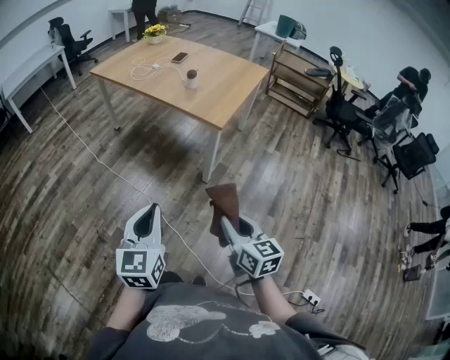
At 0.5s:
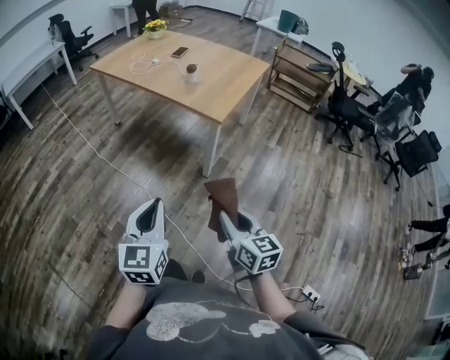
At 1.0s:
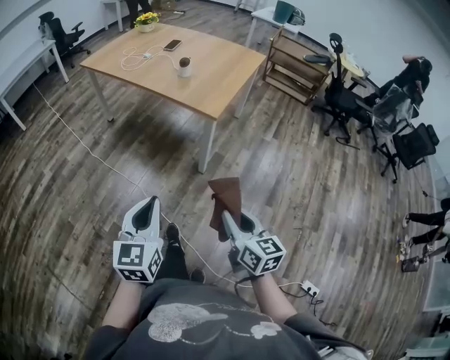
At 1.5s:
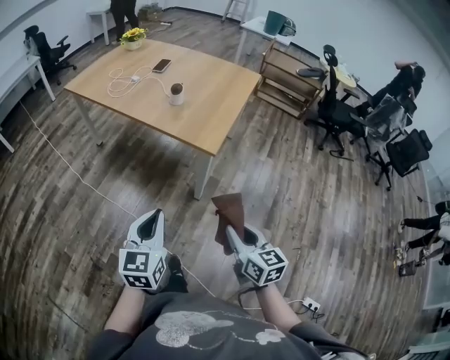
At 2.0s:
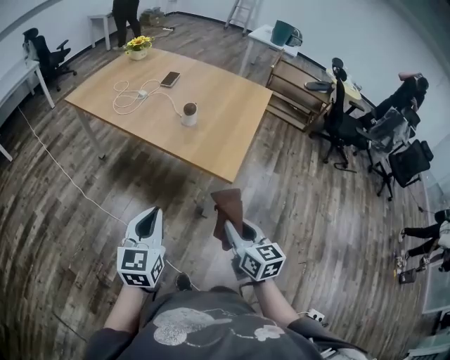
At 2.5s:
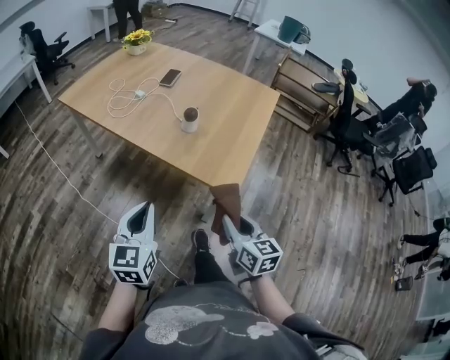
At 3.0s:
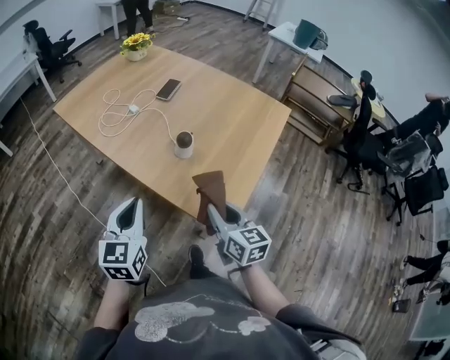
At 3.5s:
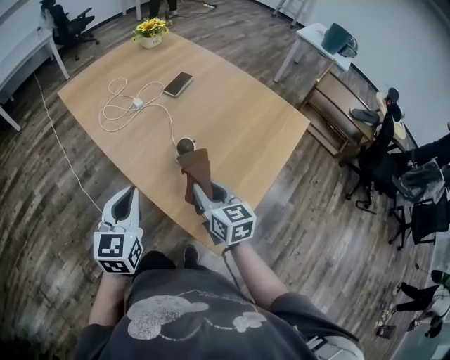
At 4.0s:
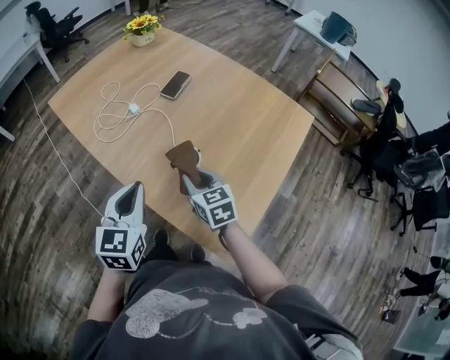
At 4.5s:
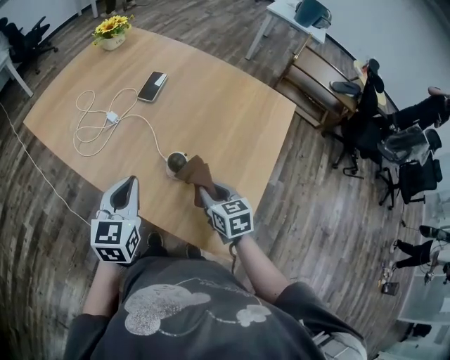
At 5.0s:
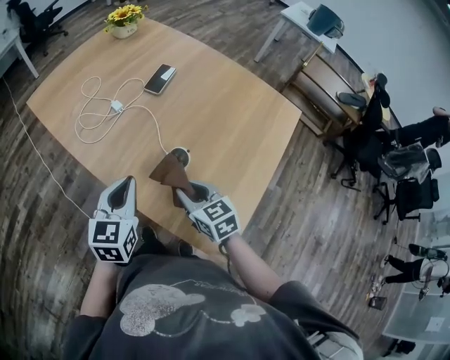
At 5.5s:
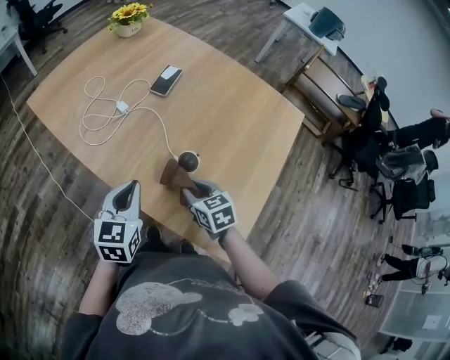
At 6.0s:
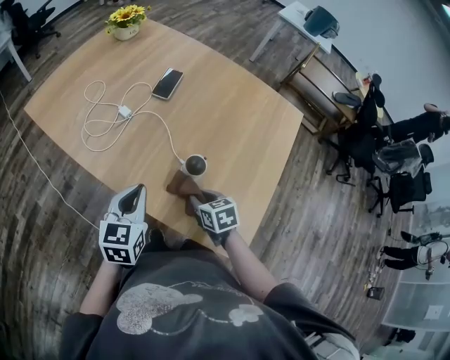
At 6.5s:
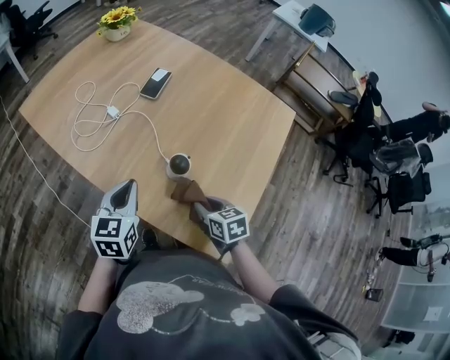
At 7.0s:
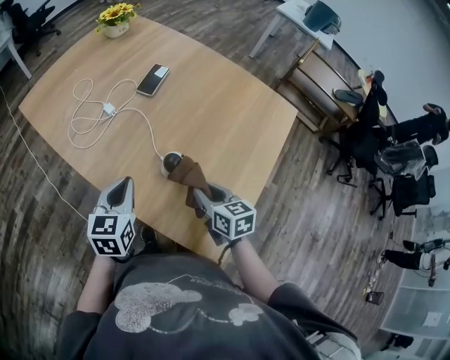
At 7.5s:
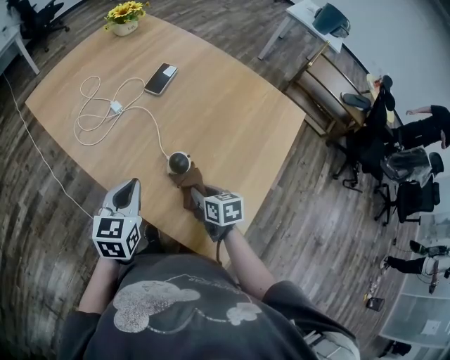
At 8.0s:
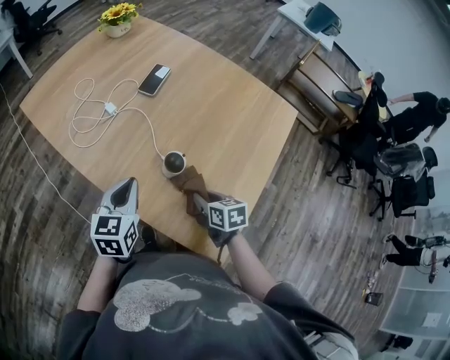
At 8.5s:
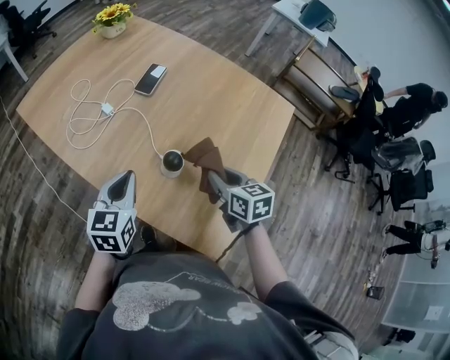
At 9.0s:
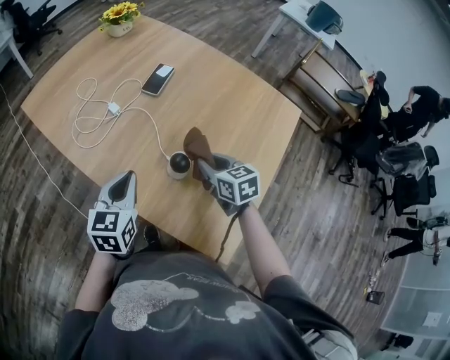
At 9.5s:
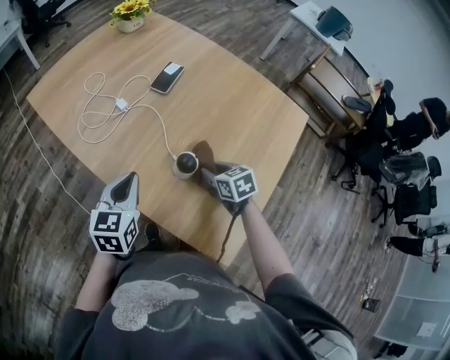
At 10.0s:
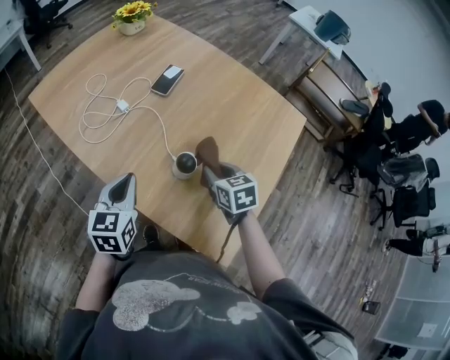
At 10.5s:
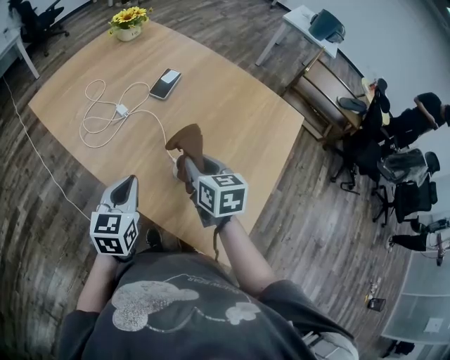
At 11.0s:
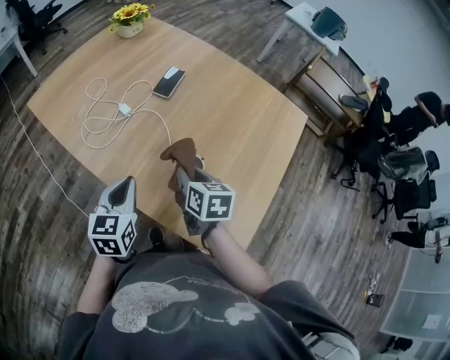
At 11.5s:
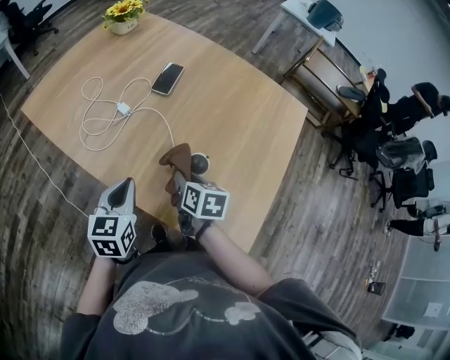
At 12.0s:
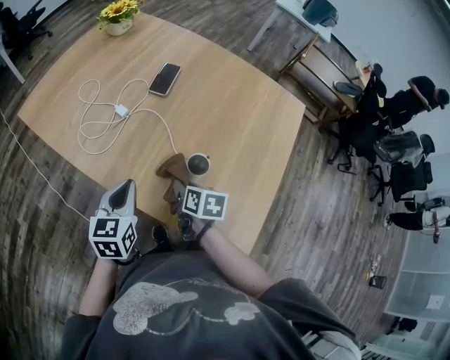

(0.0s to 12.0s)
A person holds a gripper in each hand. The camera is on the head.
0.0s - 2.0s: Both grippers move forward, about 30 cm.
2.0s - 4.0s: Both grippers move forward, about 40 cm. The right gripper swivels approximately 30 degrees.
4.0s - 6.0s: The two grippers go about 10 cm downward. The right gripper changes its angle by approximately 20 degrees.
6.0s - 8.0s: The right gripper moves to the right, some 5 cm.
8.0s - 10.0s: The right gripper moves up and down over approximately 10 cm, changing direction 2 times.
10.0s - 12.0s: The right gripper shifts approximately 15 cm to the left and downward, and swivels approximately 40 degrees; the left gripper changes place by roughly 5 cm.

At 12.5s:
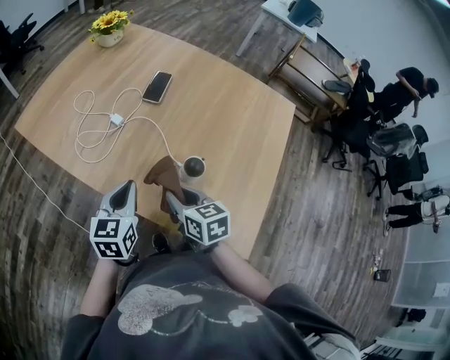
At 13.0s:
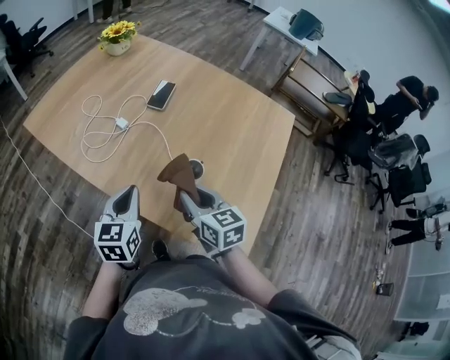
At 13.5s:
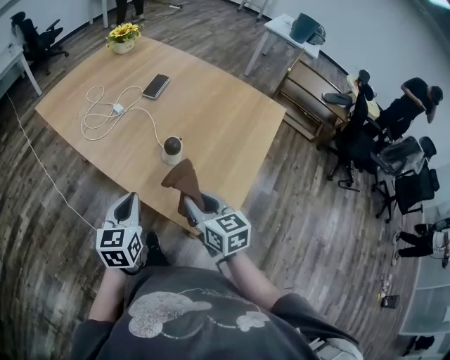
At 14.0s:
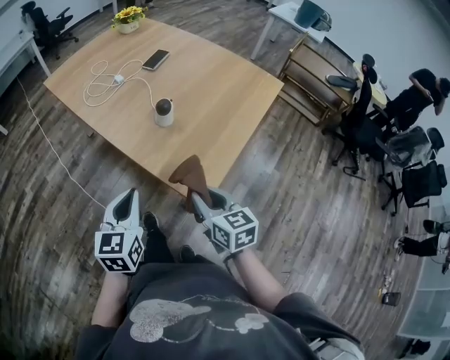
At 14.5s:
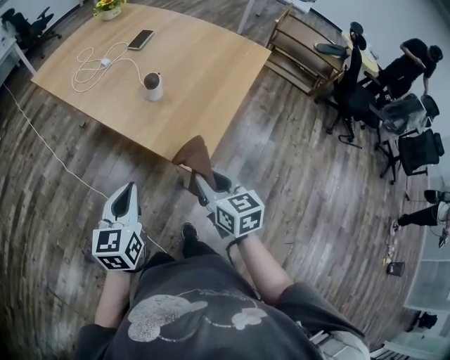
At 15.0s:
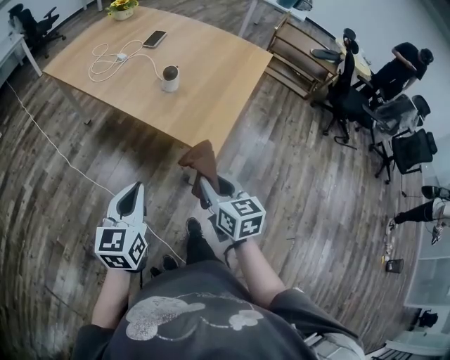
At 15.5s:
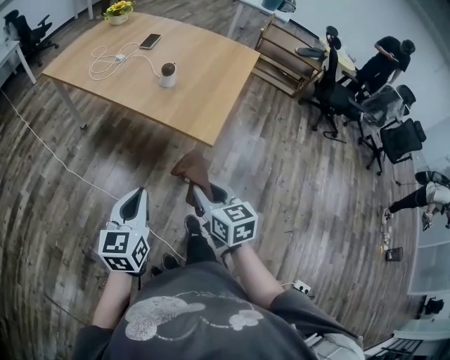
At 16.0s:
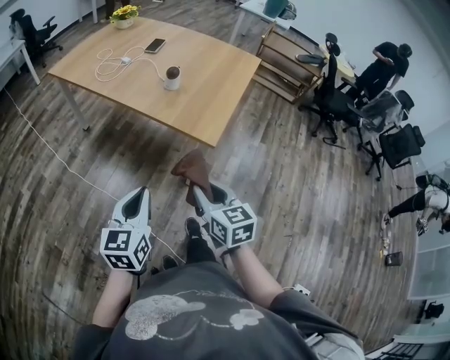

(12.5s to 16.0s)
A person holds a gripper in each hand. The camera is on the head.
12.5s - 14.5s: The right gripper heads backward and to the right, covering approximately 35 cm. Meanwhile the left gripper is displaced backward by roughly 35 cm.
14.5s - 16.0s: Both grippers travel together backward and to the left, about 20 cm.

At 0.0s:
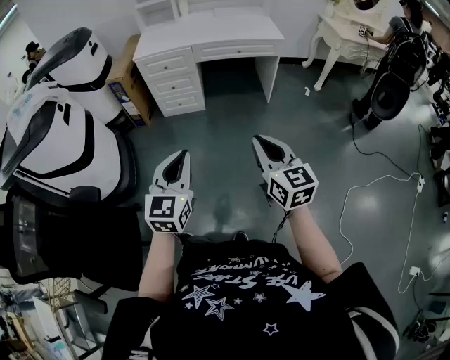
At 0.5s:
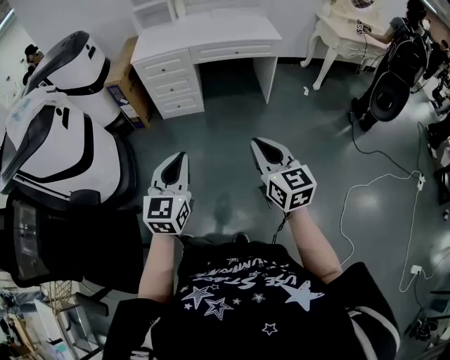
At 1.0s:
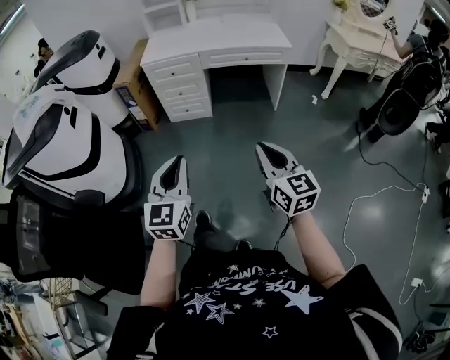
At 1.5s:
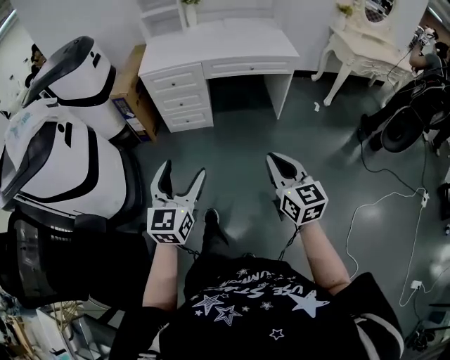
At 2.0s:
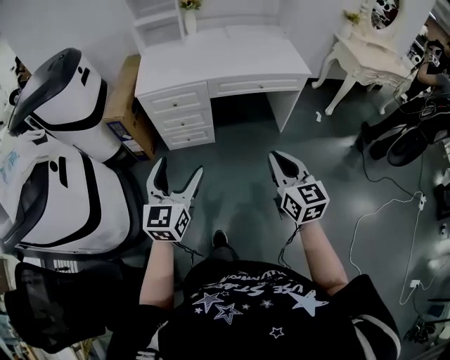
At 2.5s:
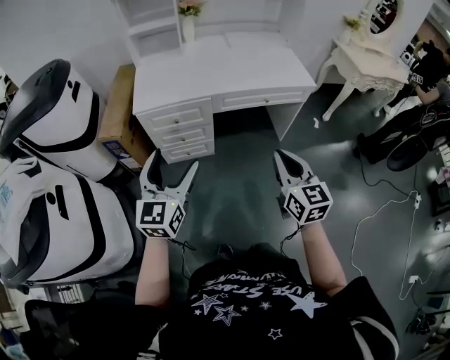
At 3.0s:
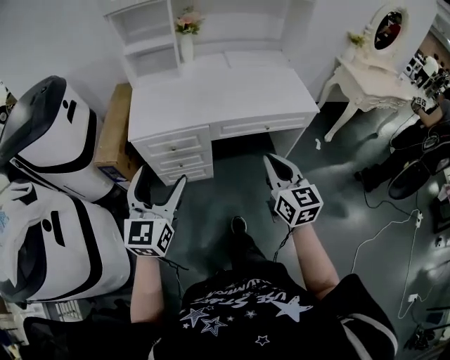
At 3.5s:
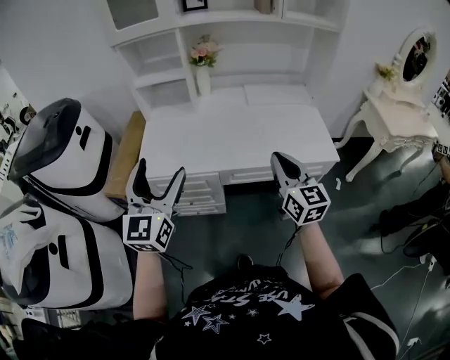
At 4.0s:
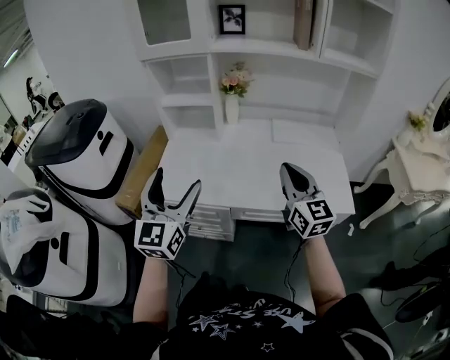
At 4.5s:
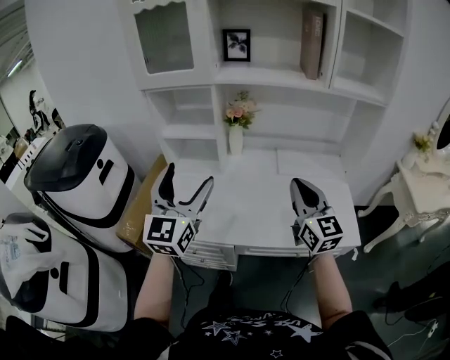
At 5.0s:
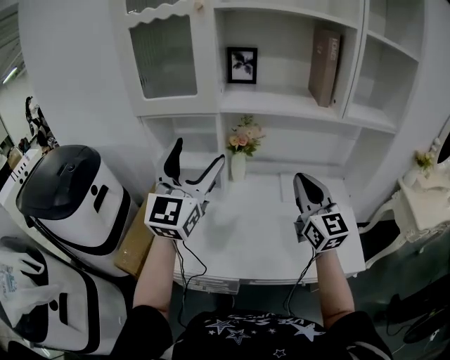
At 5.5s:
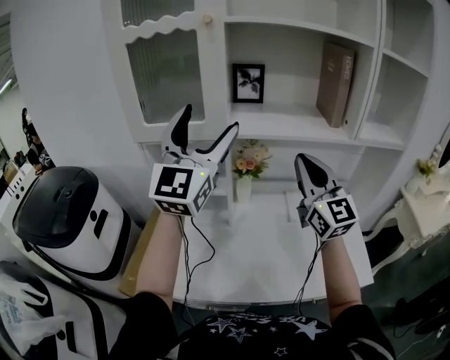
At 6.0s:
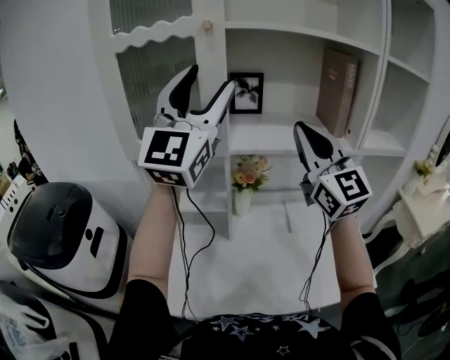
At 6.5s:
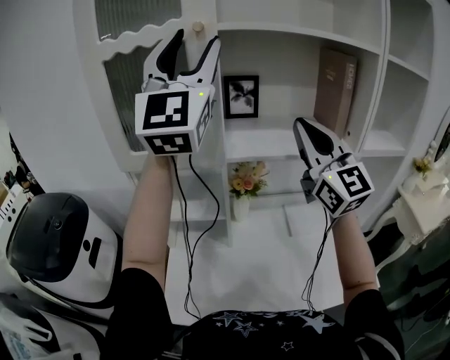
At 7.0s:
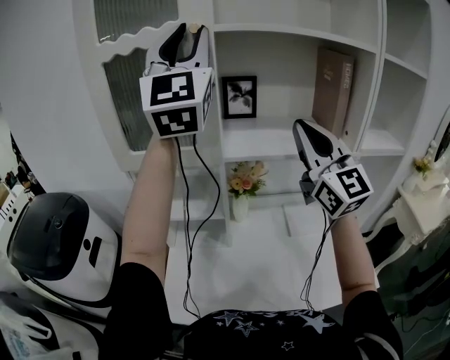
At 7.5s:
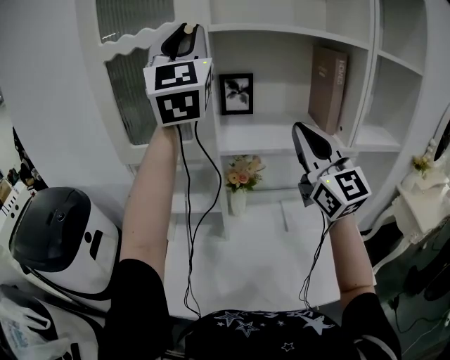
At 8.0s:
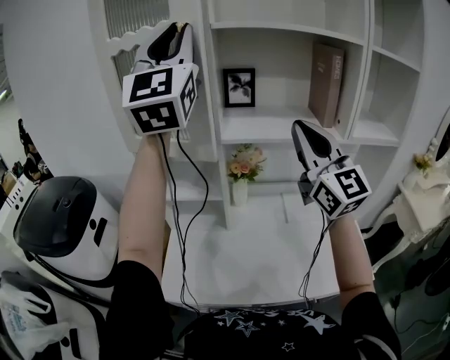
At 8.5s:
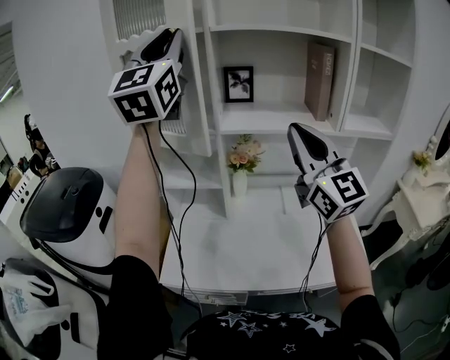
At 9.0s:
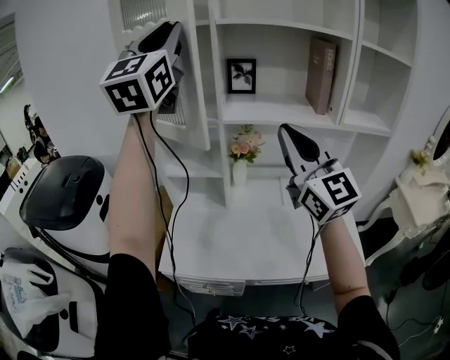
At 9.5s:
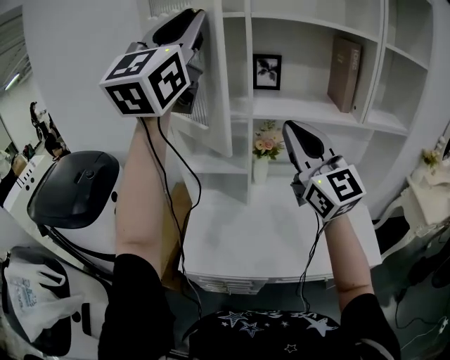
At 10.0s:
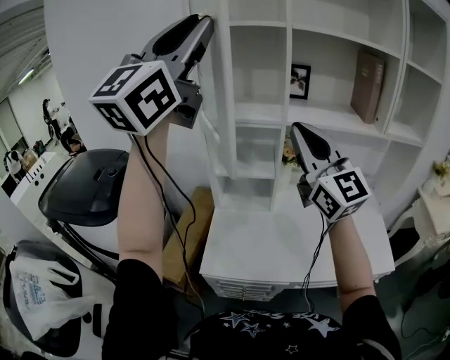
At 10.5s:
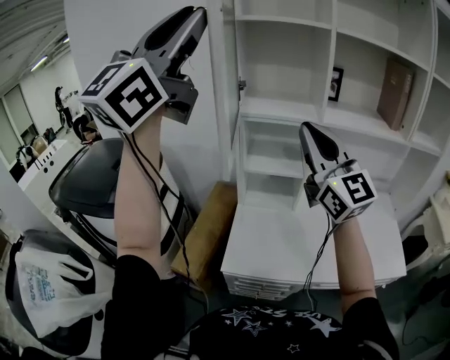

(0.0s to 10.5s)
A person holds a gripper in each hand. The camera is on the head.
0.0s - 2.0s: The grippers both shift forward by roughly 30 cm. The left gripper opens up.
2.0s - 4.0s: The pair of grippers is taken forward, about 50 cm. The left gripper turns by approximately 20 degrees.
4.0s - 6.5s: The right gripper travels forward and upward by about 40 cm, and turns by about 30 degrees. The left gripper heads upward and forward, covering approximately 60 cm, tilts its fingers roughly 30 degrees upward, and closes.
6.5s - 8.5s: The right gripper heads backward, covering roughly 15 cm; the left gripper is displaced backward by some 5 cm, and closes its fingers.
8.5s - 10.5s: The right gripper travels to the left by roughly 30 cm; the left gripper moves to the left and backward, about 30 cm, and swivels some 20 degrees.

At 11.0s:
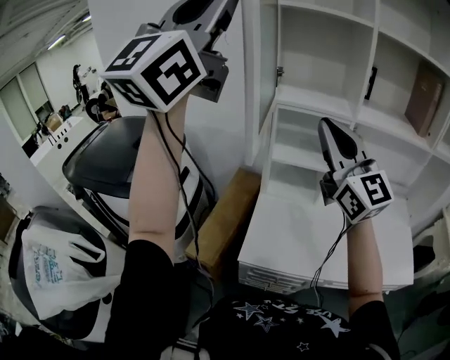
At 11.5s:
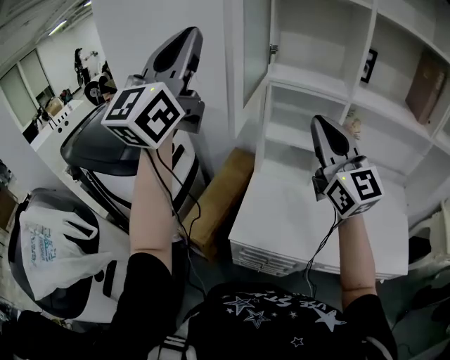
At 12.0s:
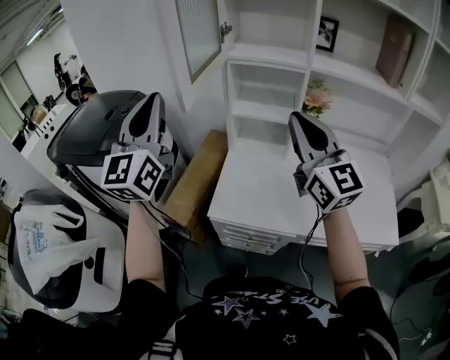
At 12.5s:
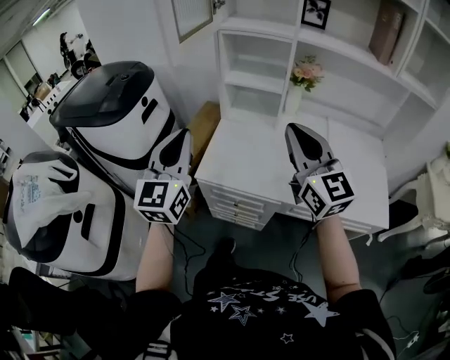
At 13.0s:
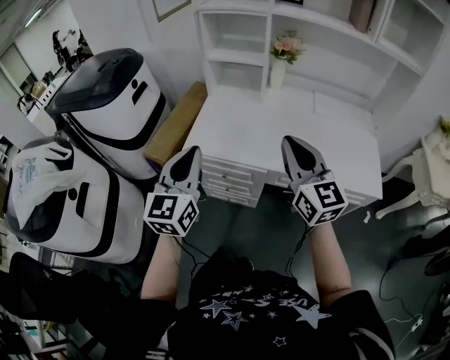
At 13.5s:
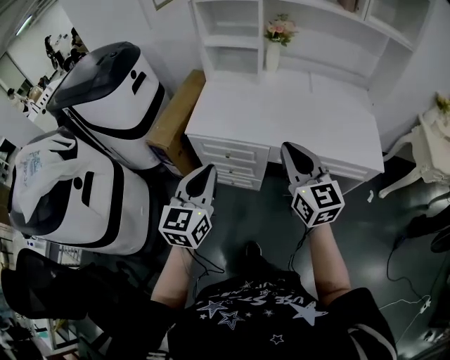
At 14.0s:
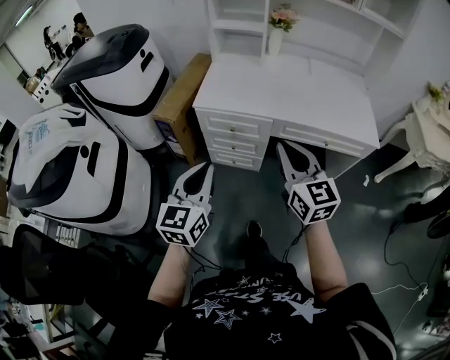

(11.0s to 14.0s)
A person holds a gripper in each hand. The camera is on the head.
11.0s - 12.5s: The left gripper moves downward, approximately 40 cm, and changes its angle by some 40 degrees. The right gripper shifts roughly 25 cm backward, downward and to the right.
12.5s - 14.0s: The two grippers go approximately 35 cm backward and downward. The left gripper turns by approximately 20 degrees.
